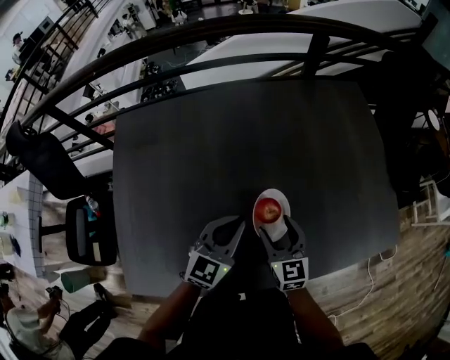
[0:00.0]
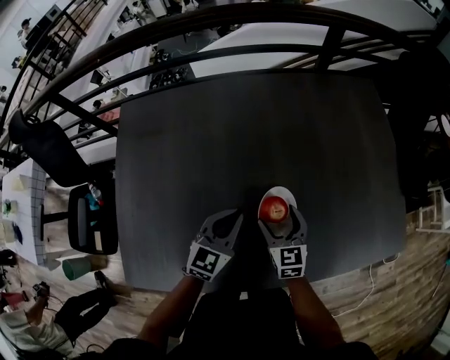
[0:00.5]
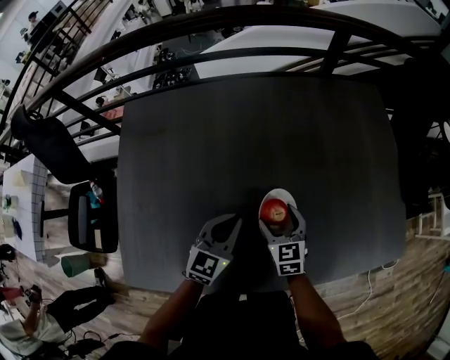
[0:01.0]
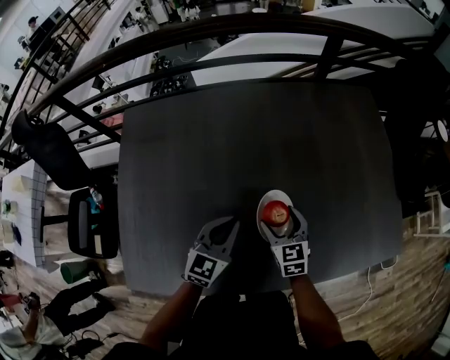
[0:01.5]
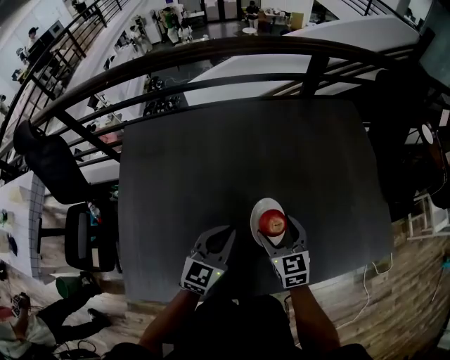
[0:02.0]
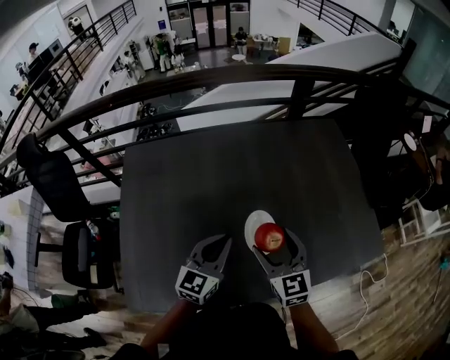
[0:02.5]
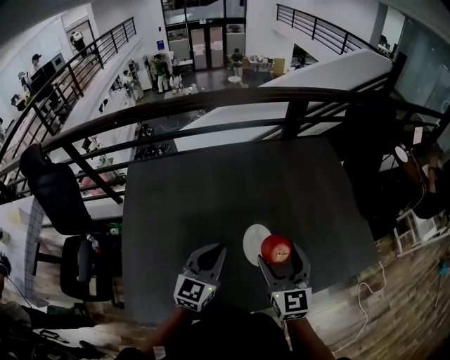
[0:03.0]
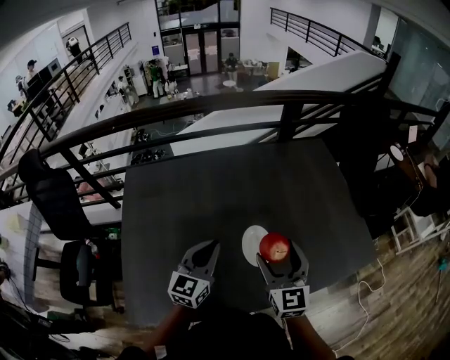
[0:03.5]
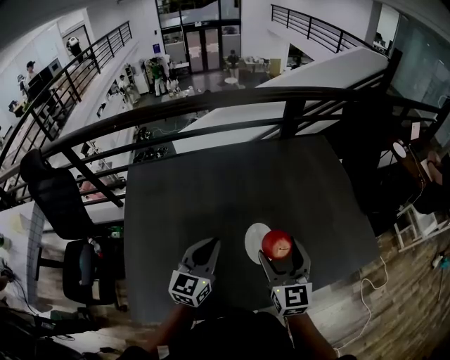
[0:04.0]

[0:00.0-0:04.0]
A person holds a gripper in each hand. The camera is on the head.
0:00.0 to 0:02.0: The right gripper goes downward and returns, about 5 cm each way.
0:02.0 to 0:04.0: The left gripper moves upward, roughly 10 cm. Meanwhile the right gripper shifts some 15 cm upward, and swivels roughly 20 degrees.

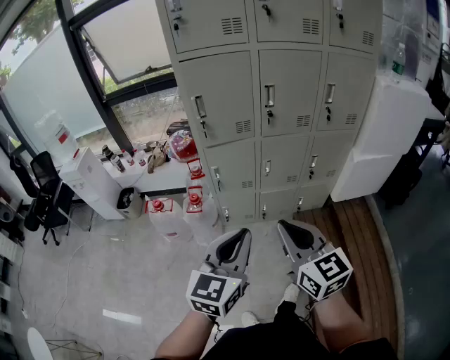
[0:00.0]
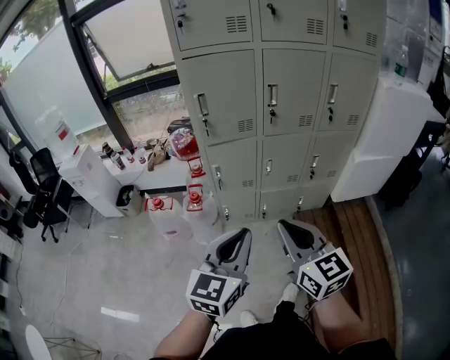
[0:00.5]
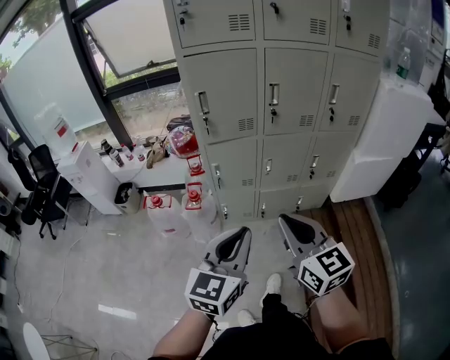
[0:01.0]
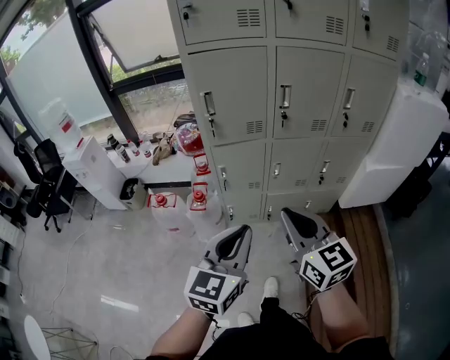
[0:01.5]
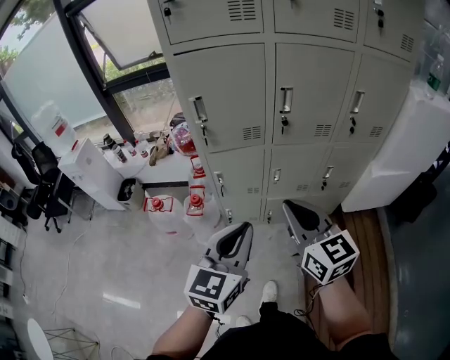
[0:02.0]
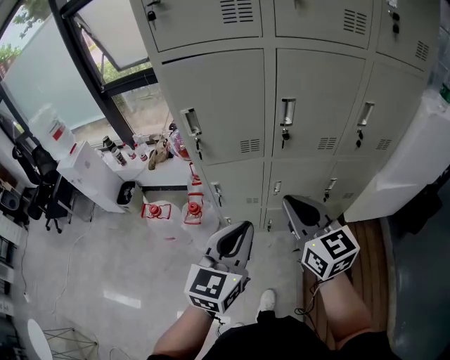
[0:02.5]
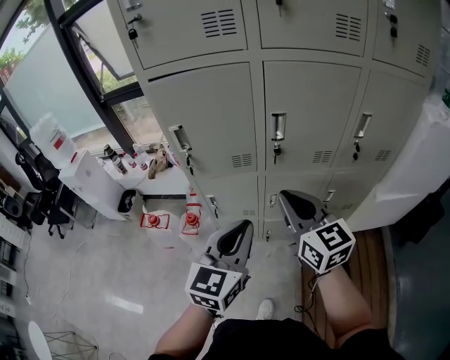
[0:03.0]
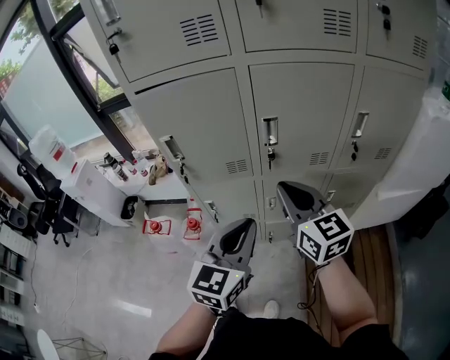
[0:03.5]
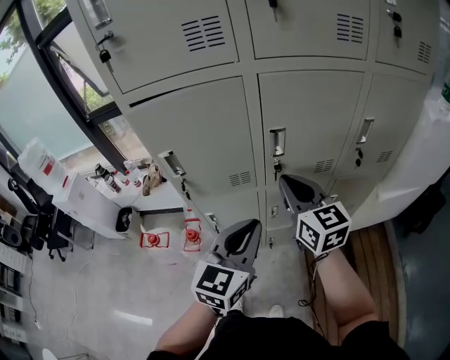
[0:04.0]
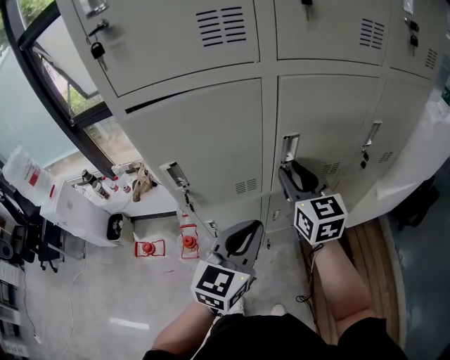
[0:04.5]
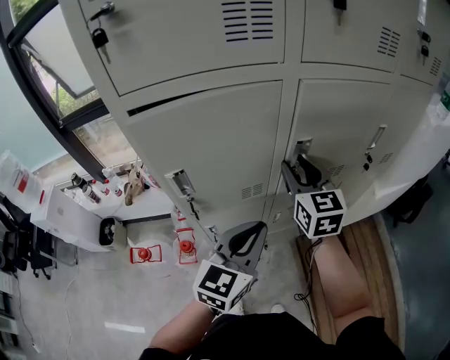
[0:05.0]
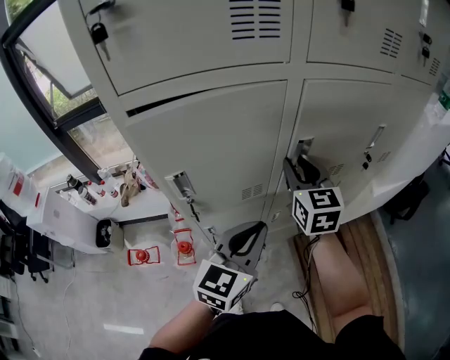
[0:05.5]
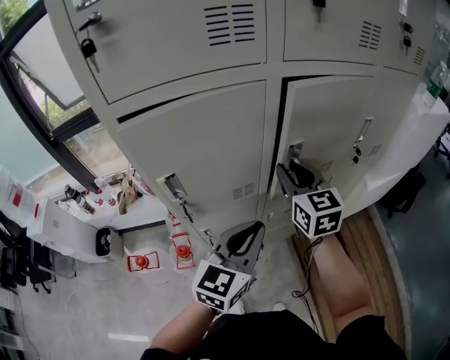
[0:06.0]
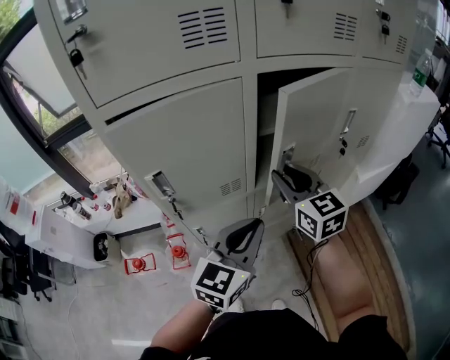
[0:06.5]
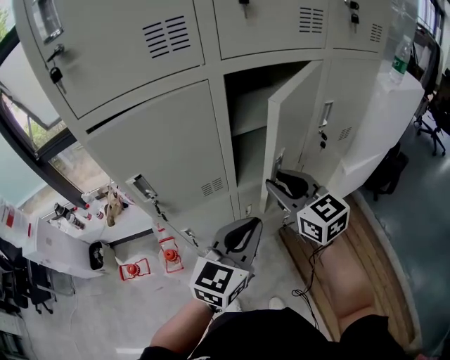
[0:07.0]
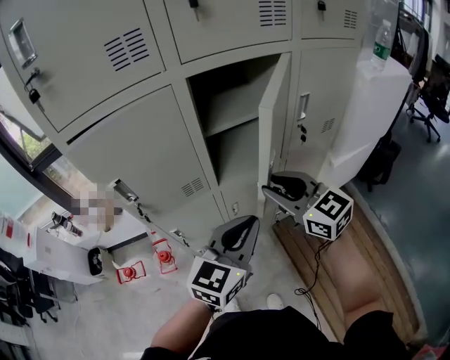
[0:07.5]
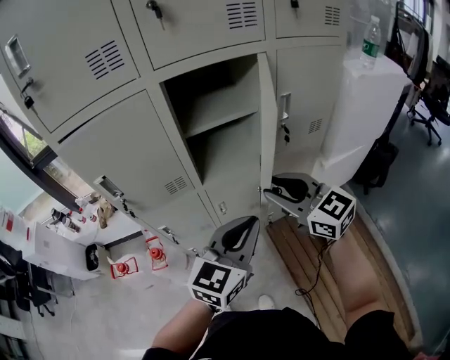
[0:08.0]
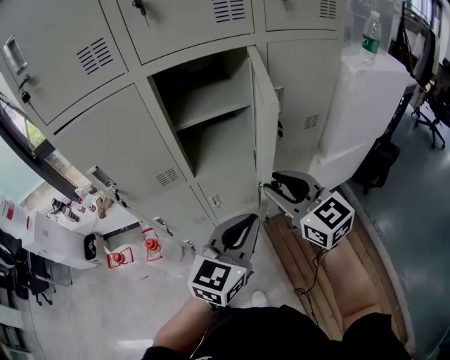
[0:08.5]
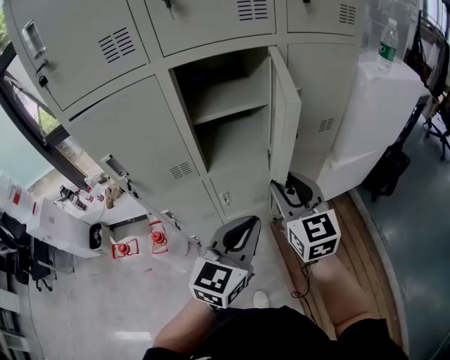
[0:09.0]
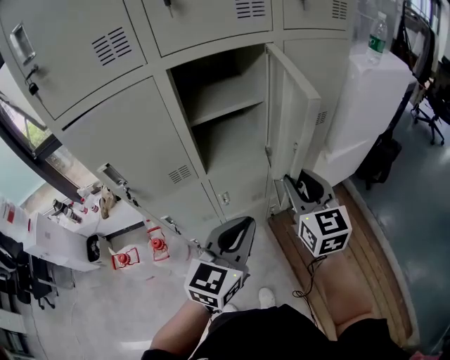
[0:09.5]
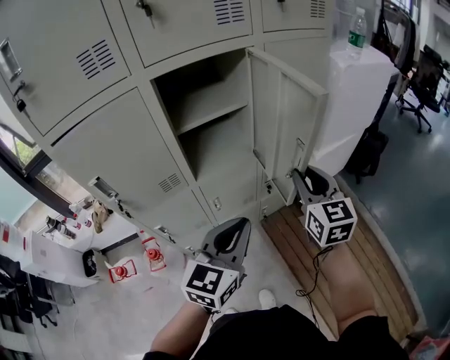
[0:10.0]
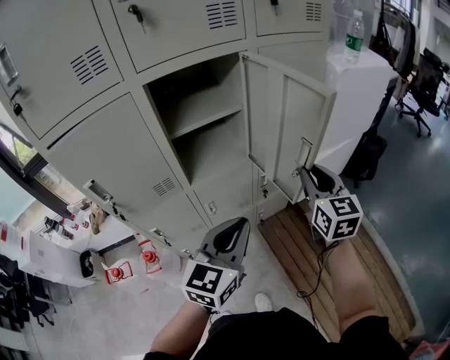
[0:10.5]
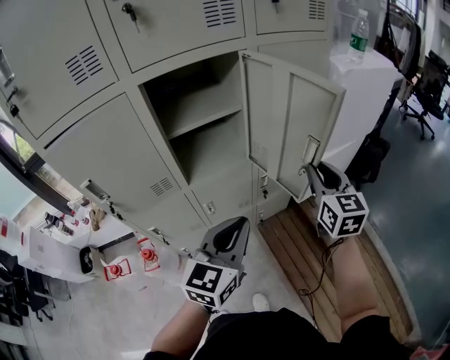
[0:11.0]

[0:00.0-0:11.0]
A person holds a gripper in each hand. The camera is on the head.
0:00.0 to 0:02.0: The grippers both shift forward by about 15 cm.
0:02.0 to 0:03.5: The left gripper heads forward and to the right, covering roughly 15 cm, while the right gripper is displaced forward by about 20 cm.
0:03.5 to 0:05.5: The left gripper is displaced forward and to the left by approximately 15 cm, and turns by roughly 20 degrees, while the right gripper is displaced forward by approximately 15 cm, swivels about 30 degrees, and opens its fingers.
0:05.5 to 0:07.5: The left gripper goes approximately 15 cm to the right. The right gripper moves backward and to the right, roughly 15 cm, and swivels some 30 degrees.
0:07.5 to 0:09.0: Both grippers move to the right, some 10 cm. The right gripper rotates roughly 20 degrees.
0:09.0 to 0:11.0: The right gripper goes some 15 cm to the right and forward.

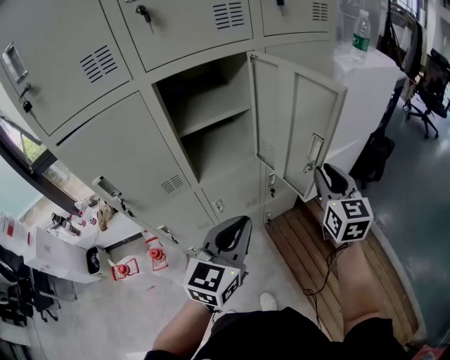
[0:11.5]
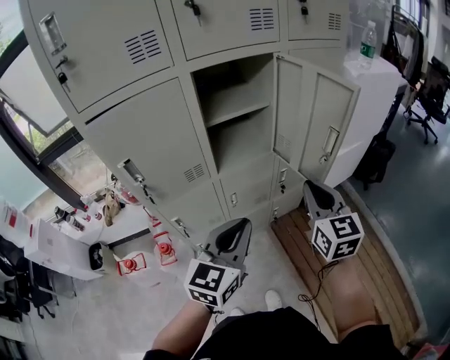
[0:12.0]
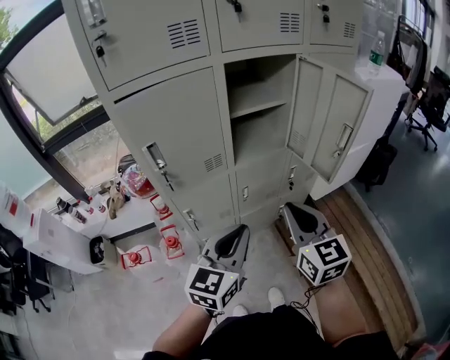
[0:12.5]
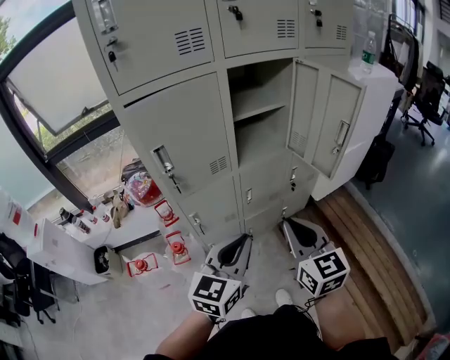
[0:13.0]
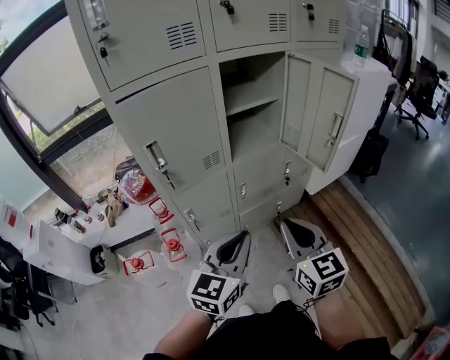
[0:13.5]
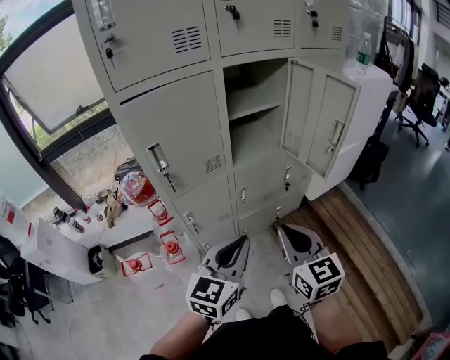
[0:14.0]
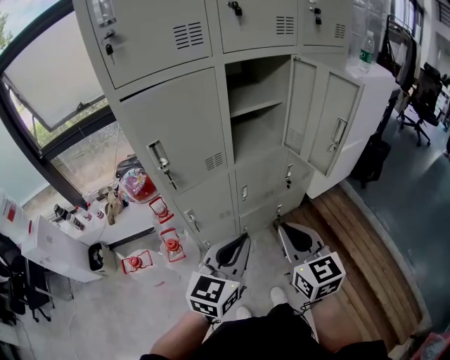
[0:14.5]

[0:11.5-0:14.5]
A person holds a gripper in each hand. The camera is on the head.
0:11.5 to 0:13.0: The left gripper shifts some 20 cm backward and to the left. The right gripper shifts roughly 35 cm backward and to the left, and closes its fingers.
0:13.0 to 0:14.5: There are only small adjustments of the grippers.

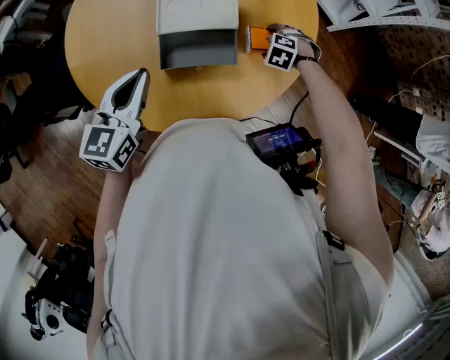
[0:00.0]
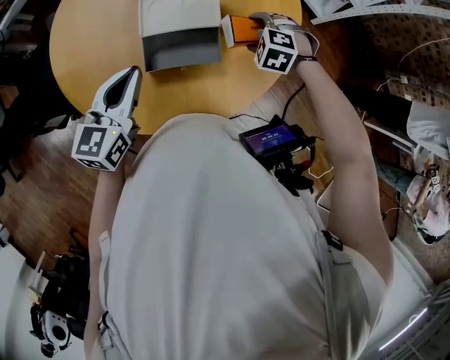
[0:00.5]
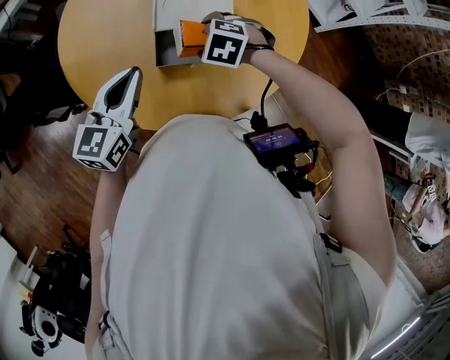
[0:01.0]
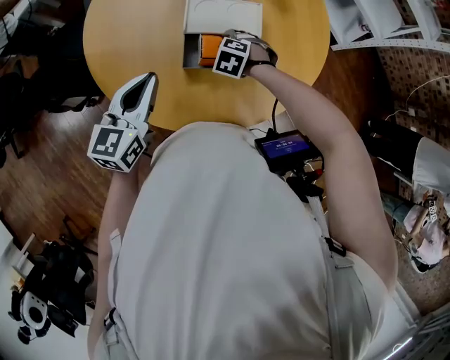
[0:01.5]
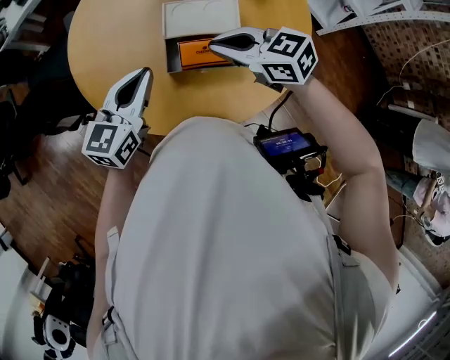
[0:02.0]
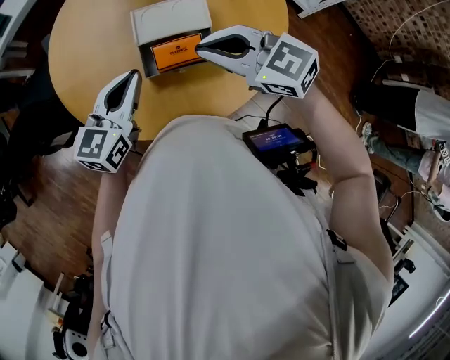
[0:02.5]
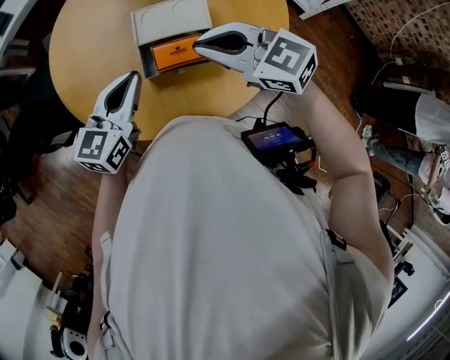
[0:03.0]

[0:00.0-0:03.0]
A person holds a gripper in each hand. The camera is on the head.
0:00.0 to 0:01.5: The right gripper travels upward and back again, about 10 cm each way.
0:01.5 to 0:03.0: The left gripper moves approximately 5 cm. The right gripper shifts approximately 25 cm upward, tips its fingers upward by about 50 degrees, and closes.

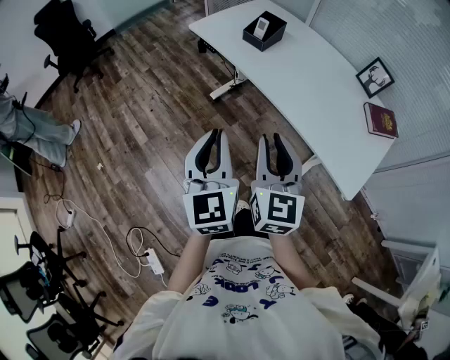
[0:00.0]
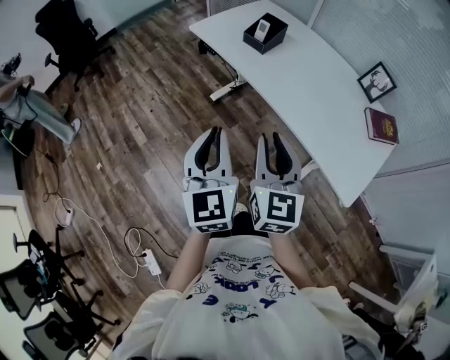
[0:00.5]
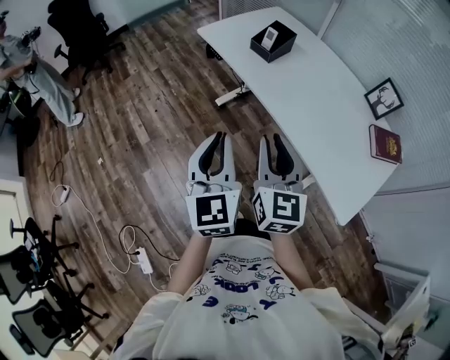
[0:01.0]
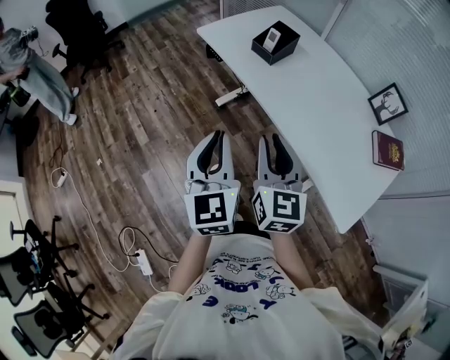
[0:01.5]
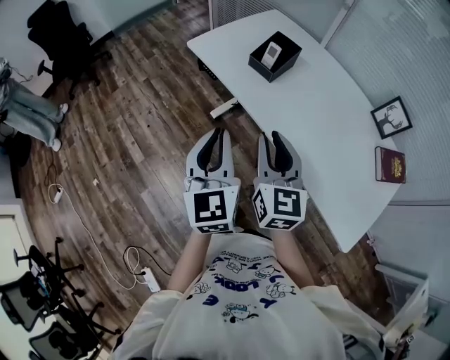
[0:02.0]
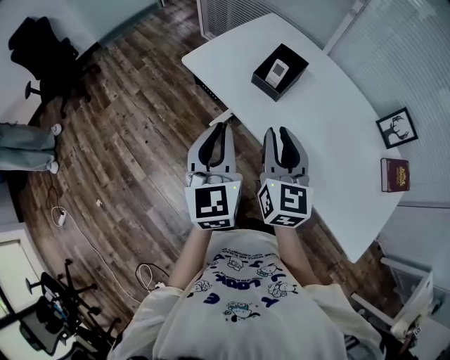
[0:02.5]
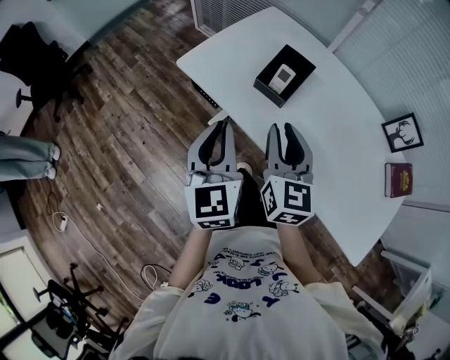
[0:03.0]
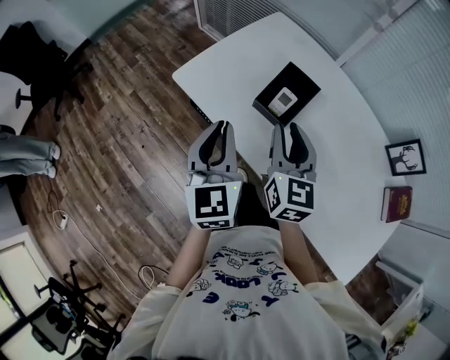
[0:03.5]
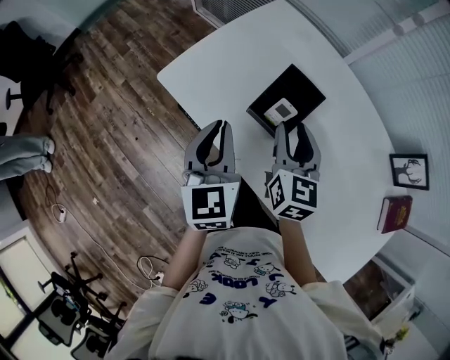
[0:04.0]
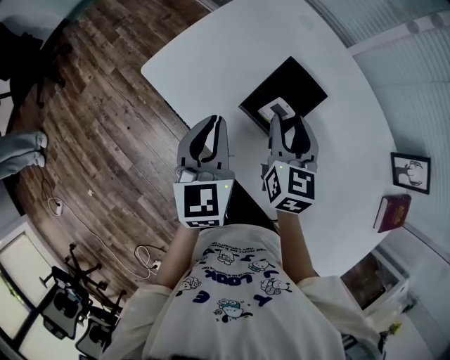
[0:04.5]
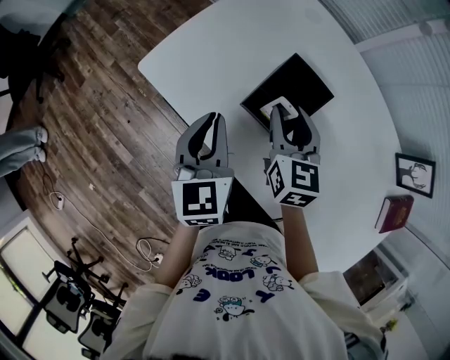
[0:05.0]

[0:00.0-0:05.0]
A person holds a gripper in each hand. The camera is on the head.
0:00.0 to 0:02.5: The two grippers go about 35 cm forward.
0:02.5 to 0:05.0: Both grippers travel together forward and downward, some 35 cm.
